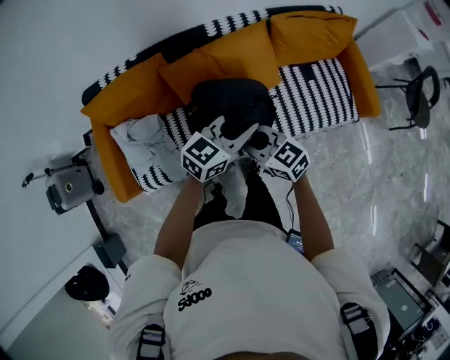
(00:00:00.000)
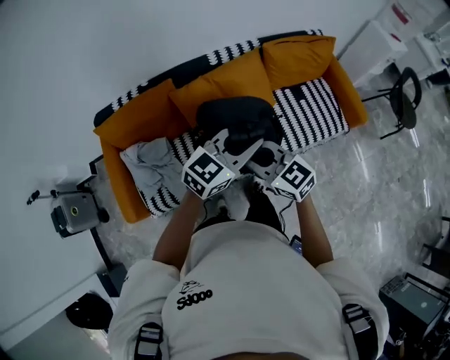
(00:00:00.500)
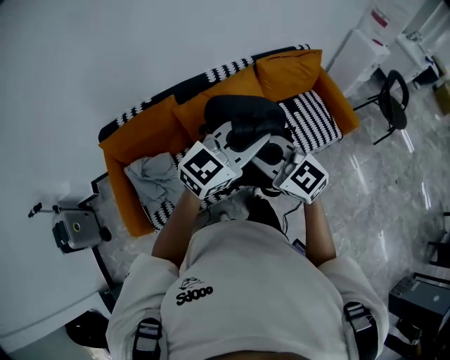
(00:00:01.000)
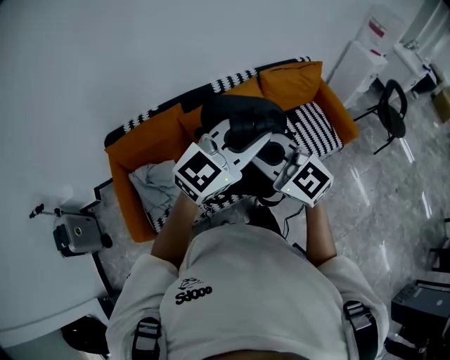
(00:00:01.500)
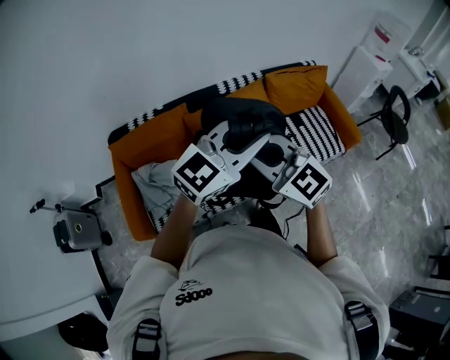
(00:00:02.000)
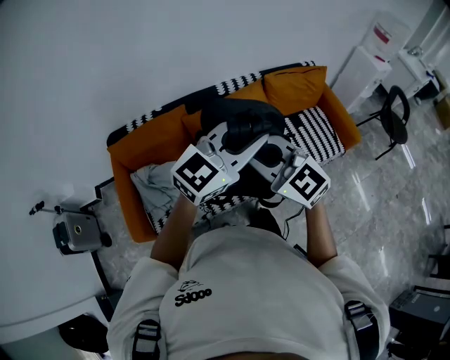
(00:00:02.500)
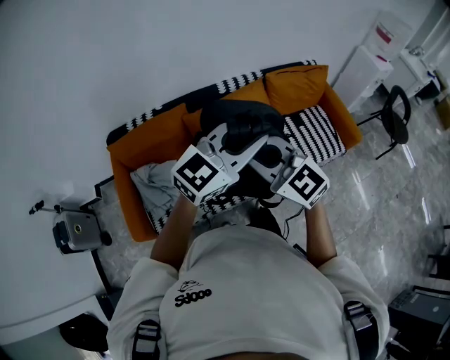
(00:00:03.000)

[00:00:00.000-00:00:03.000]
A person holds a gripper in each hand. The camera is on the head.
00:00:00.000 to 00:00:01.500: Both grippers move upward and backward, roughly 35 cm. The left gripper changes its angle by some 30 degrees; the right gripper turns by some 40 degrees.
00:00:01.500 to 00:00:03.000: There are only small adjustments of the grippers.

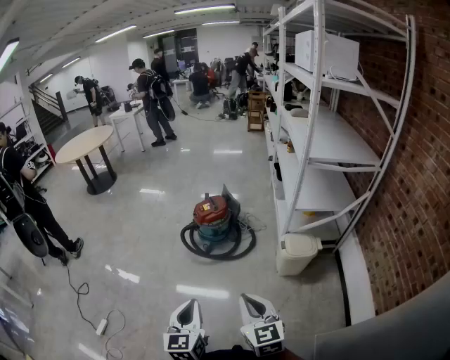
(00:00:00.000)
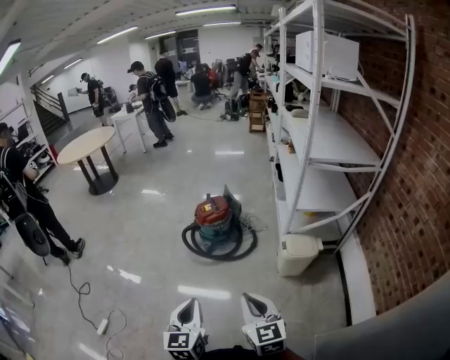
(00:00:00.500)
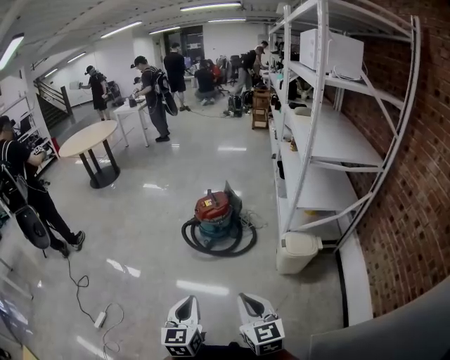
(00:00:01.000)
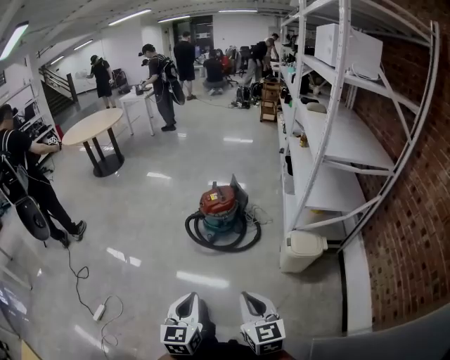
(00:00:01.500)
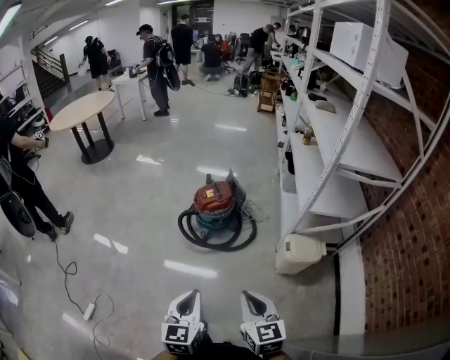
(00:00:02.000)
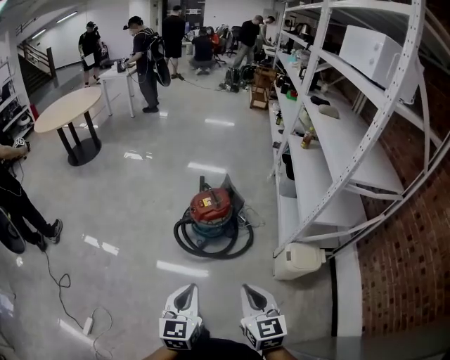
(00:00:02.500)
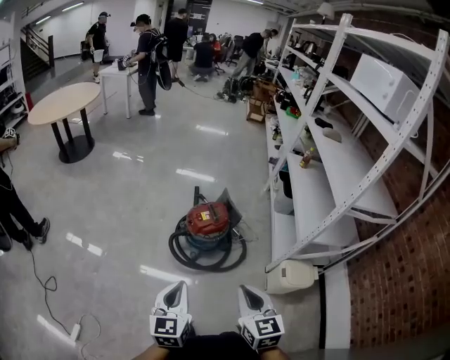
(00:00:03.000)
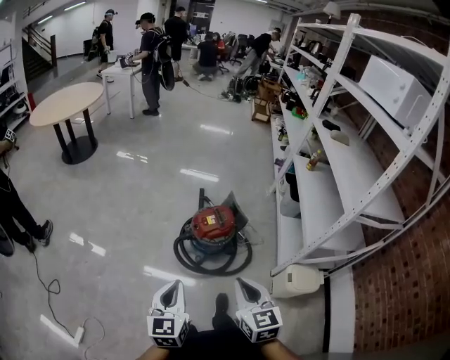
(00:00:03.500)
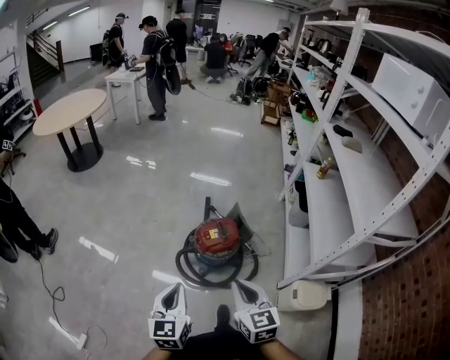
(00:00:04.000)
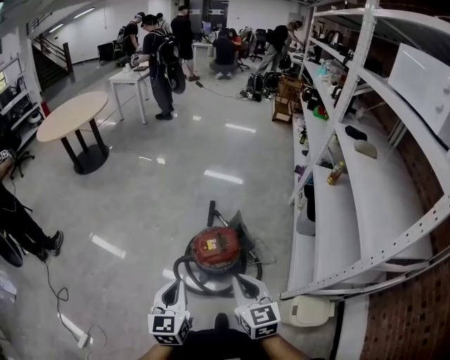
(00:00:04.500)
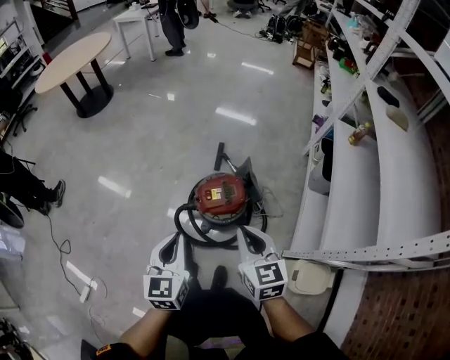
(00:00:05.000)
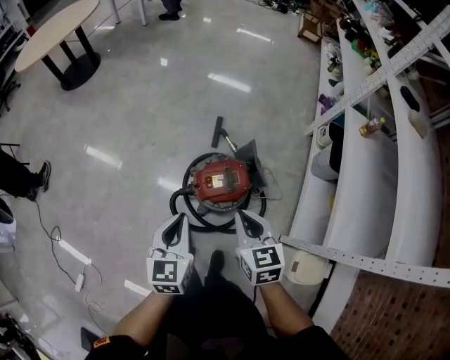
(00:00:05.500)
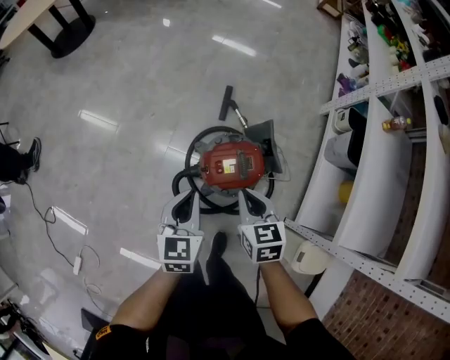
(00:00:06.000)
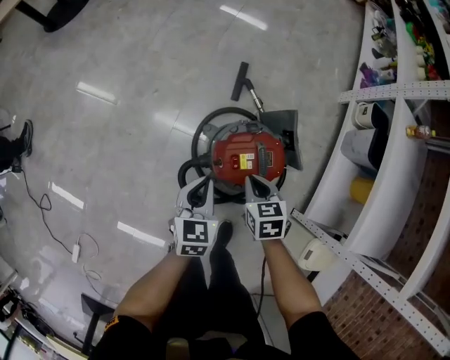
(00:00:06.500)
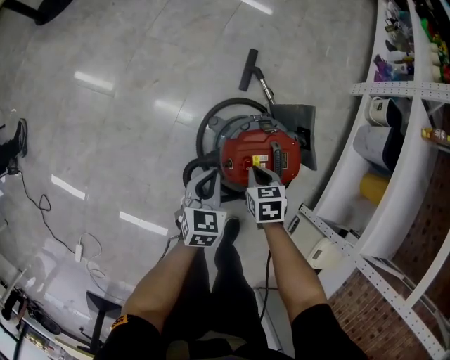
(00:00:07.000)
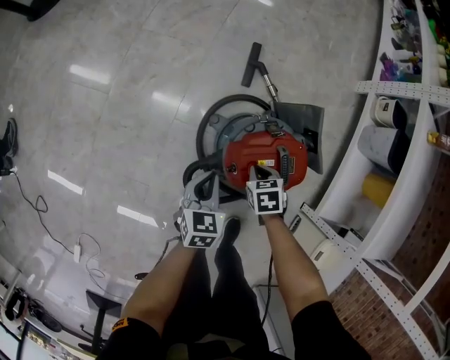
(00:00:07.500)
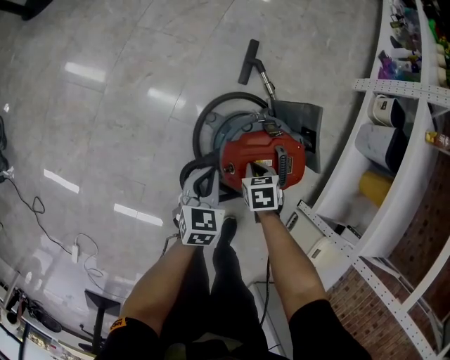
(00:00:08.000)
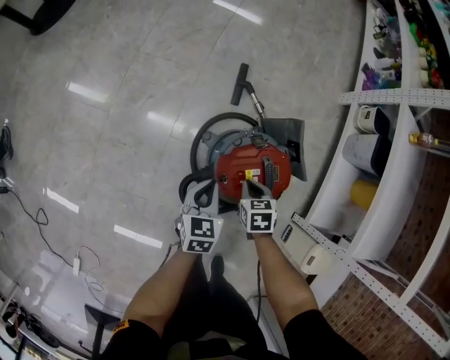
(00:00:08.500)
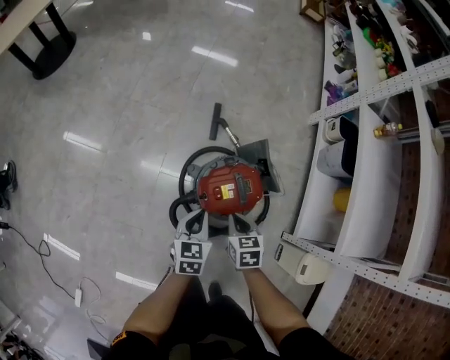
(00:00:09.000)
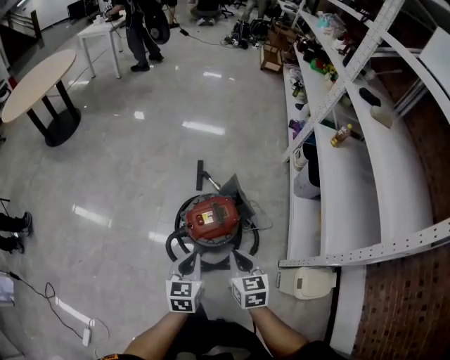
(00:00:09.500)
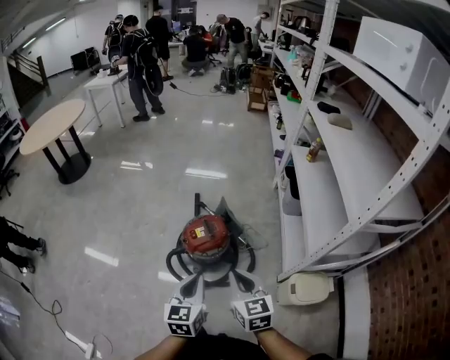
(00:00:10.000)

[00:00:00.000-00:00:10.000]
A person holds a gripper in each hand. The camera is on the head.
00:00:00.000 to 00:00:02.000: Both grippers travel together forward, approximately 10 cm.
00:00:02.000 to 00:00:04.000: The grippers both shift forward by some 35 cm.
00:00:04.000 to 00:00:06.000: The two grippers go about 35 cm forward and downward. The right gripper rotates about 20 degrees.
00:00:06.000 to 00:00:08.000: The grippers both shift downward by about 30 cm. The right gripper angles its fingers downward, by about 30 degrees.
00:00:08.000 to 00:00:10.000: Both grippers move upward, about 40 cm. The left gripper rotates approximately 30 degrees. Meanwhile the right gripper tips its fingers upward by approximately 60 degrees.

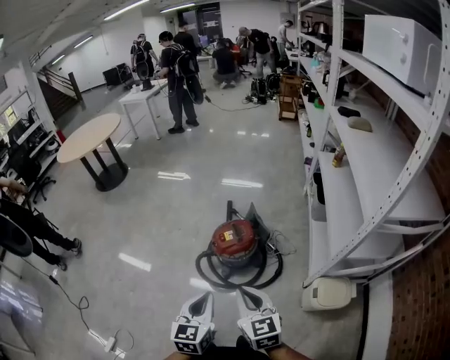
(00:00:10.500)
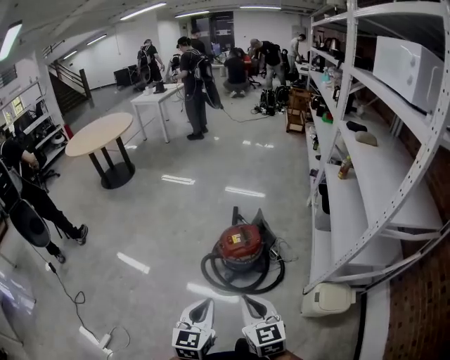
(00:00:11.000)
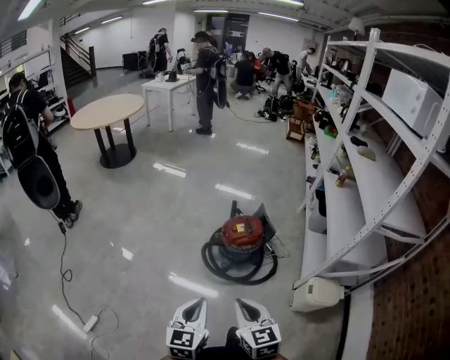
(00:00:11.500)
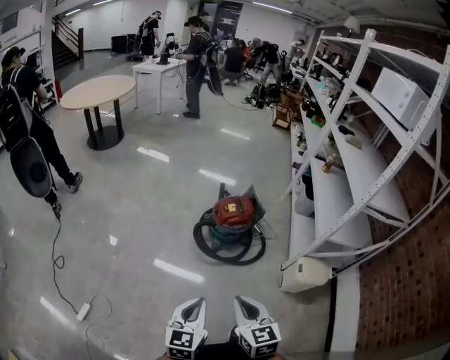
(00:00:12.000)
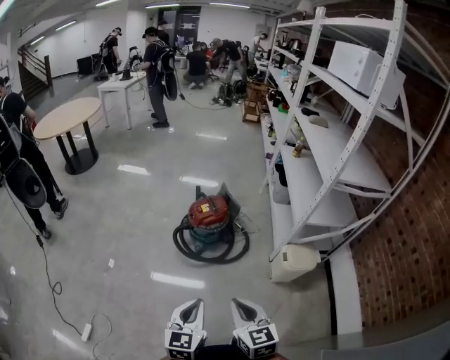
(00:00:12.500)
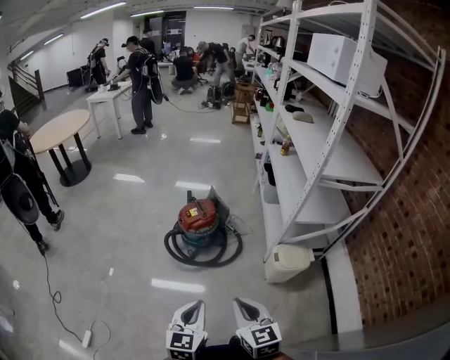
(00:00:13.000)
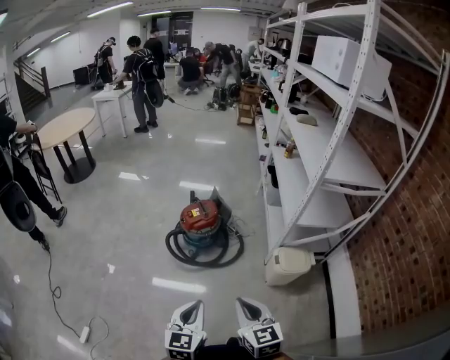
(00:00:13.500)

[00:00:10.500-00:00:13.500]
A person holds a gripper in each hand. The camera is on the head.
00:00:10.500 to 00:00:12.000: Both grippers move backward and to the left, approximately 30 cm.
00:00:12.000 to 00:00:13.500: The grippers both shift to the right by about 15 cm.

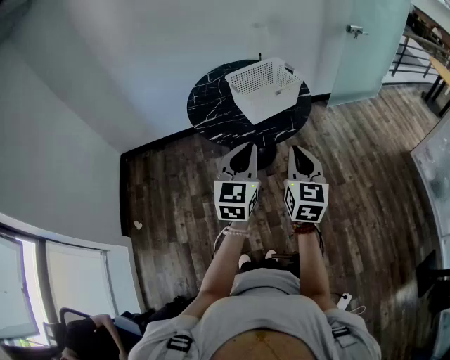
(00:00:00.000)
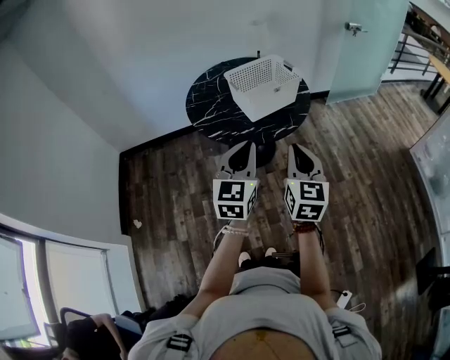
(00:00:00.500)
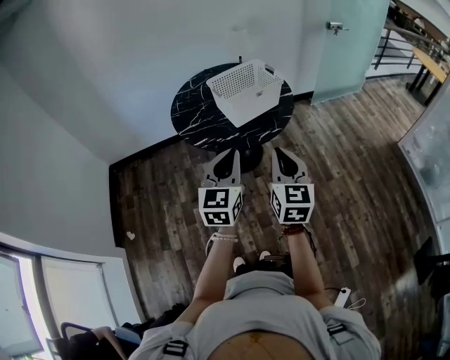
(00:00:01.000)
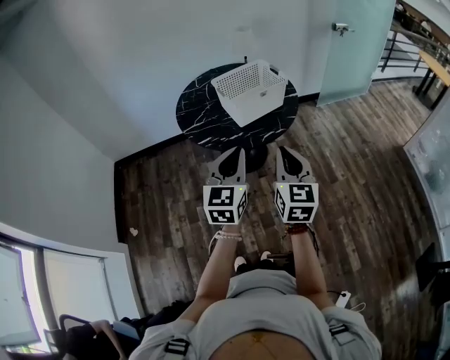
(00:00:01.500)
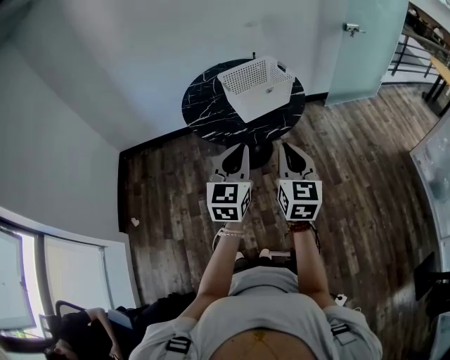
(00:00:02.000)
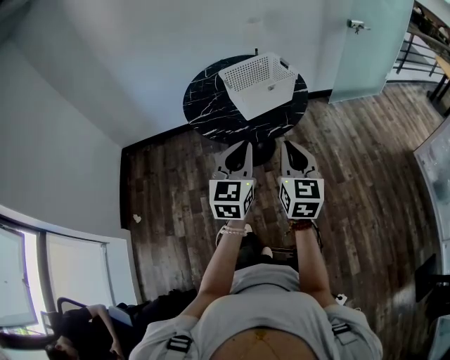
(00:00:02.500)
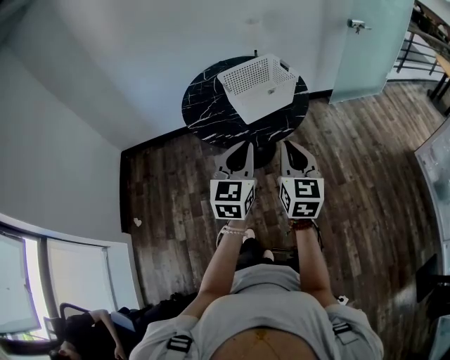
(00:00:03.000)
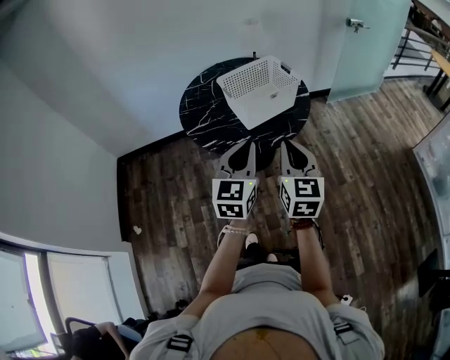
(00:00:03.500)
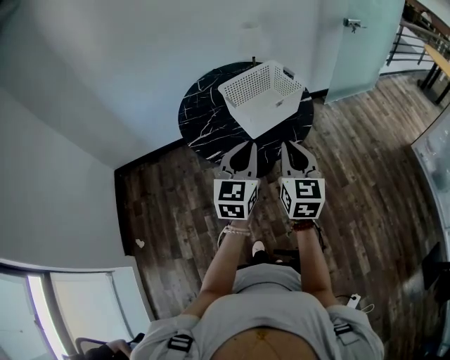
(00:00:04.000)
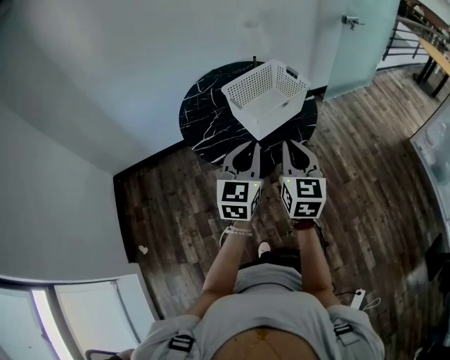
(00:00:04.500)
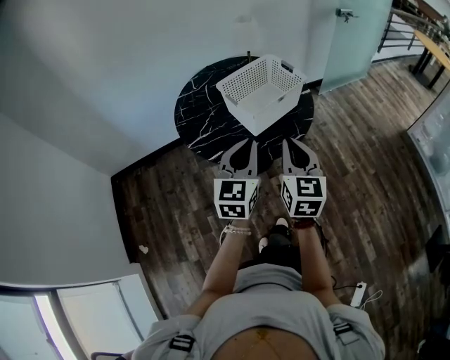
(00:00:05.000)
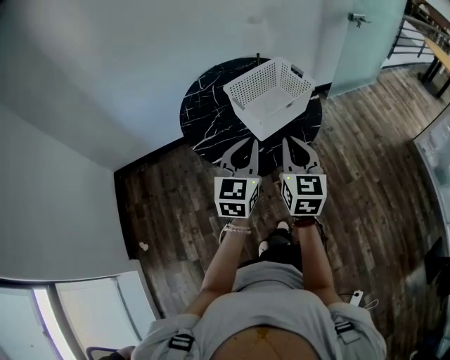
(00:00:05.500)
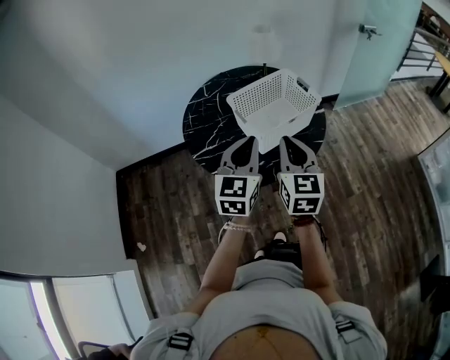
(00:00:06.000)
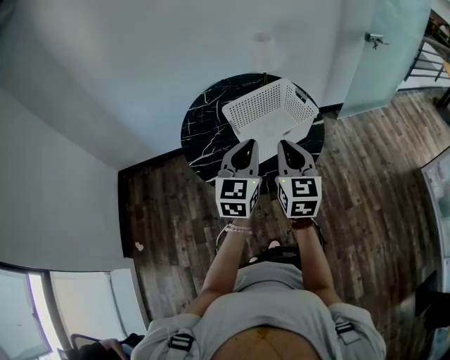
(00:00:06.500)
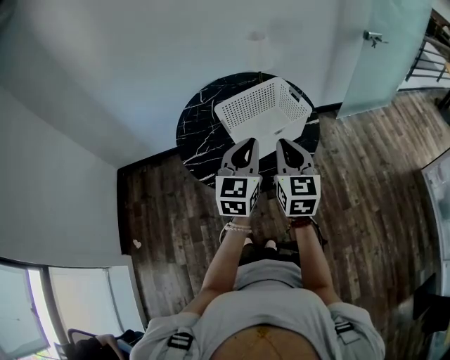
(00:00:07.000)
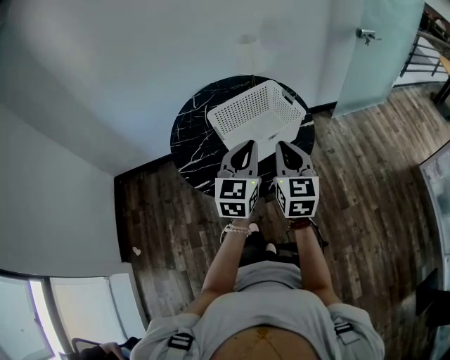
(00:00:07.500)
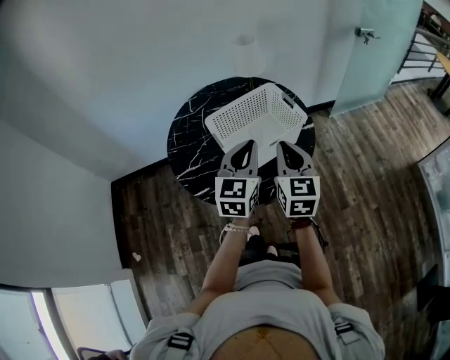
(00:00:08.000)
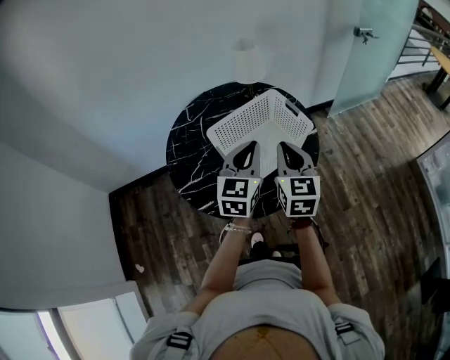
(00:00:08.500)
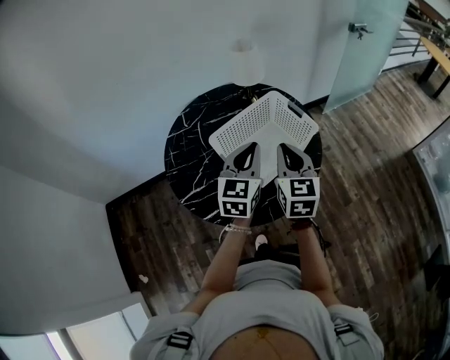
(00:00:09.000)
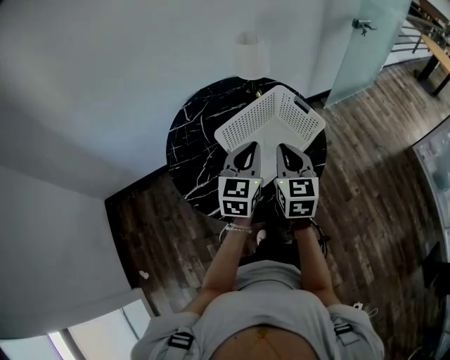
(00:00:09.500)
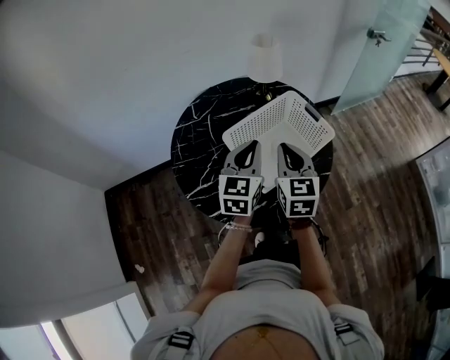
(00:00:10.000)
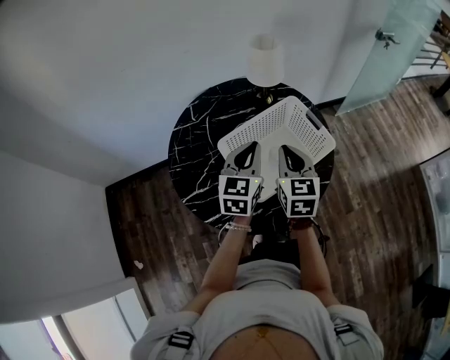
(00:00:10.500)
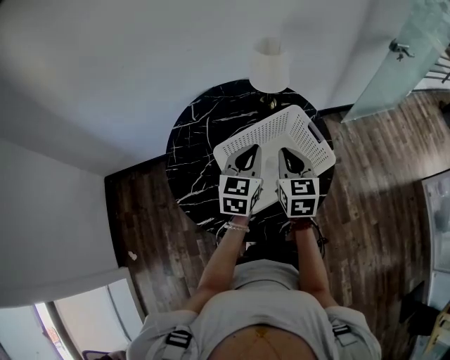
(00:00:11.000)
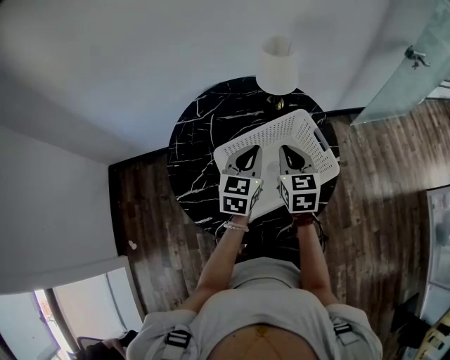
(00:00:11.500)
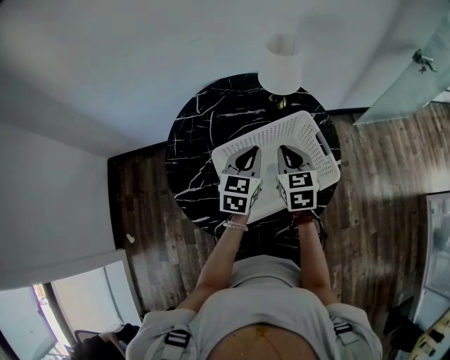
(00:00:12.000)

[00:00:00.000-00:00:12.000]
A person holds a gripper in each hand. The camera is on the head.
00:00:00.000 to 00:00:02.000: The grippers move only a little.
00:00:02.000 to 00:00:04.000: The right gripper goes some 15 cm forward and to the left. The left gripper moves forward, about 15 cm.
00:00:04.000 to 00:00:06.000: The grippers both shift forward by roughly 10 cm.
00:00:06.000 to 00:00:08.000: Both grippers move forward and to the right, some 15 cm.
00:00:08.000 to 00:00:10.000: The left gripper heads forward and to the left, covering some 15 cm. The right gripper heads to the left and forward, covering about 15 cm.
00:00:10.000 to 00:00:12.000: Both grippers move forward and downward, about 15 cm. The right gripper swivels approximately 20 degrees.
